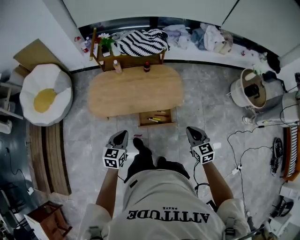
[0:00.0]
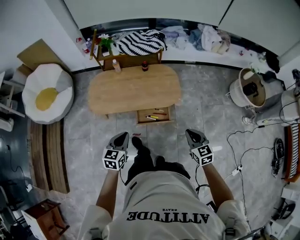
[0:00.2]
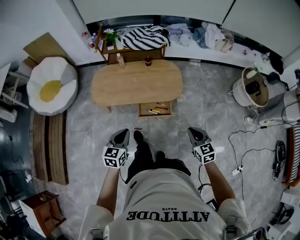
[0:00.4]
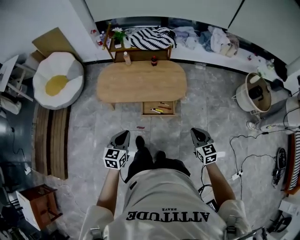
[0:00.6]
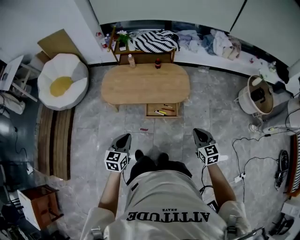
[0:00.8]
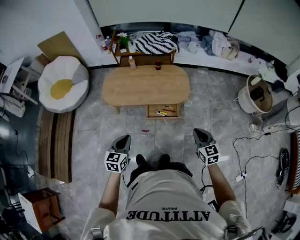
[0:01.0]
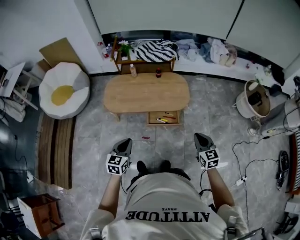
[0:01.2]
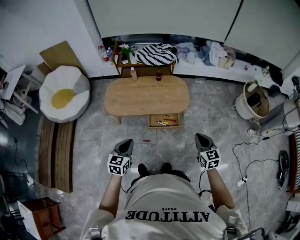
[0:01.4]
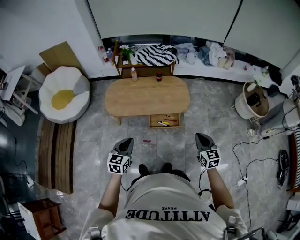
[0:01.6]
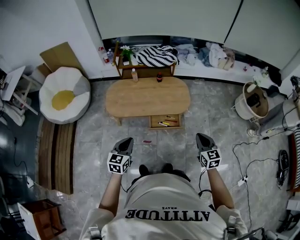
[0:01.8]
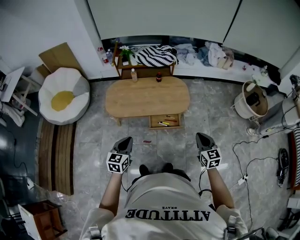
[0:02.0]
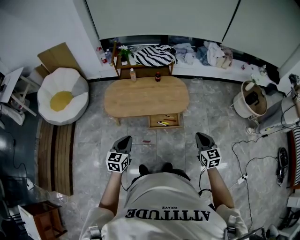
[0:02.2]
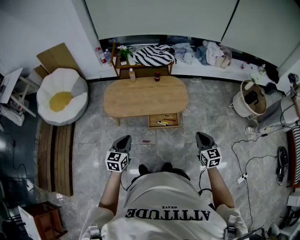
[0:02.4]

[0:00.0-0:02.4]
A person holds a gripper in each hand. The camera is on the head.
0:00.0 to 0:01.2: The grippers both shift backward by some 15 cm.
0:01.2 to 0:02.4: The left gripper changes place by approximately 5 cm.

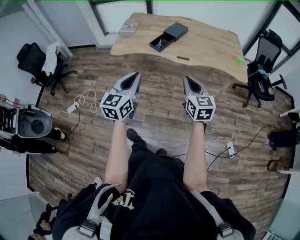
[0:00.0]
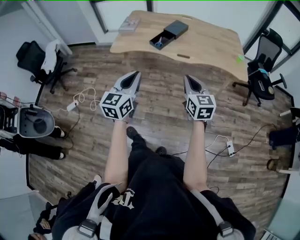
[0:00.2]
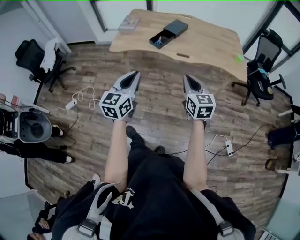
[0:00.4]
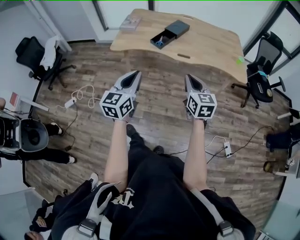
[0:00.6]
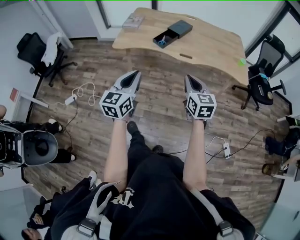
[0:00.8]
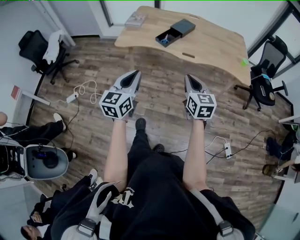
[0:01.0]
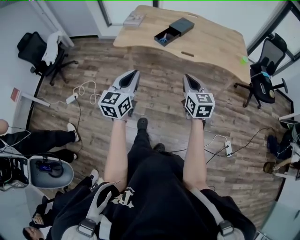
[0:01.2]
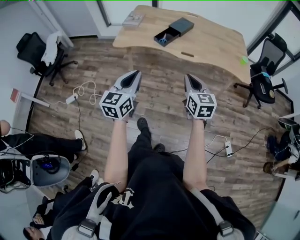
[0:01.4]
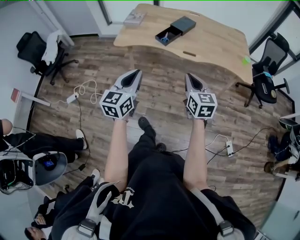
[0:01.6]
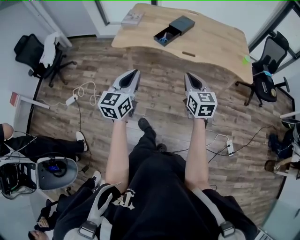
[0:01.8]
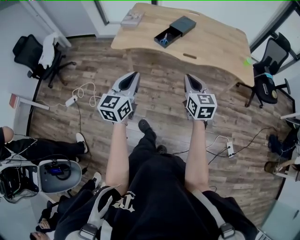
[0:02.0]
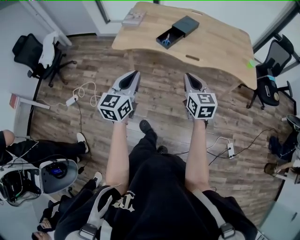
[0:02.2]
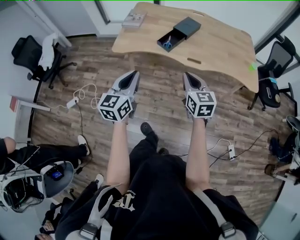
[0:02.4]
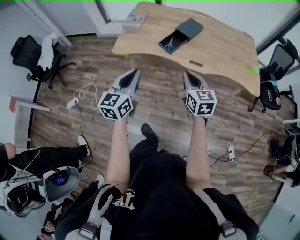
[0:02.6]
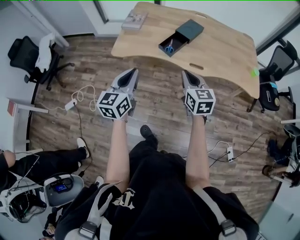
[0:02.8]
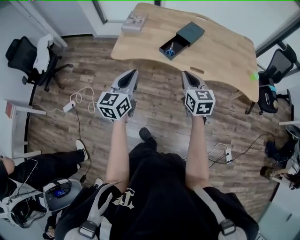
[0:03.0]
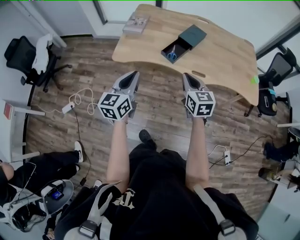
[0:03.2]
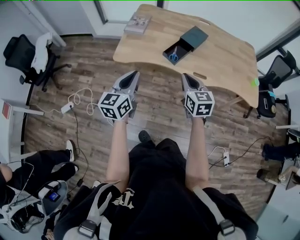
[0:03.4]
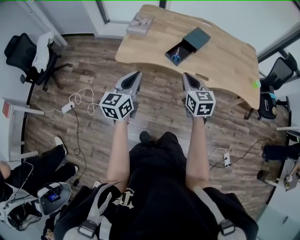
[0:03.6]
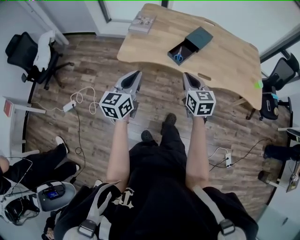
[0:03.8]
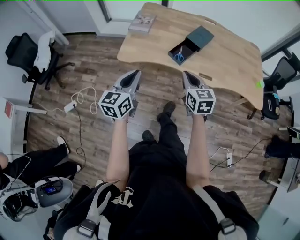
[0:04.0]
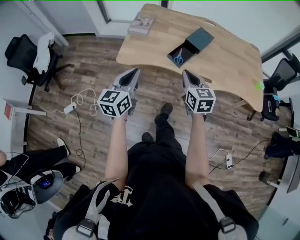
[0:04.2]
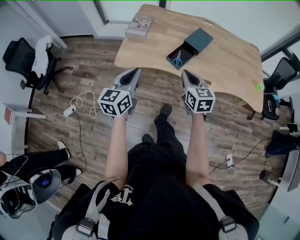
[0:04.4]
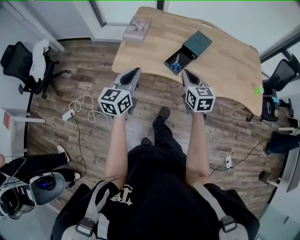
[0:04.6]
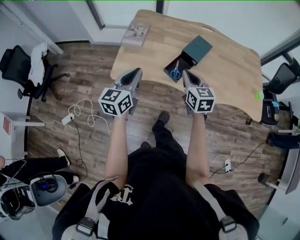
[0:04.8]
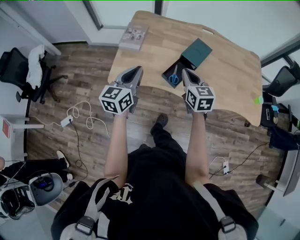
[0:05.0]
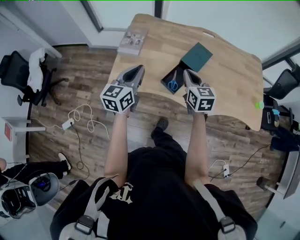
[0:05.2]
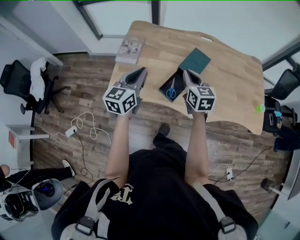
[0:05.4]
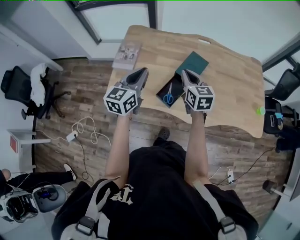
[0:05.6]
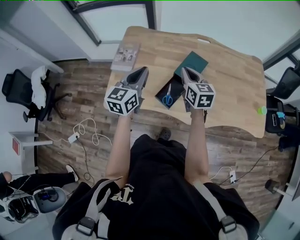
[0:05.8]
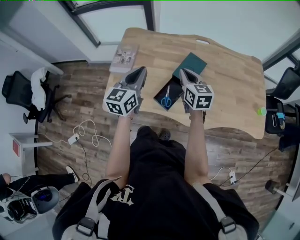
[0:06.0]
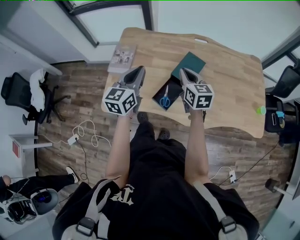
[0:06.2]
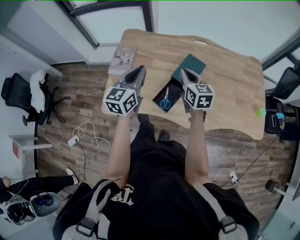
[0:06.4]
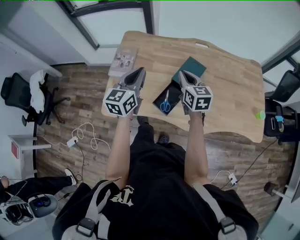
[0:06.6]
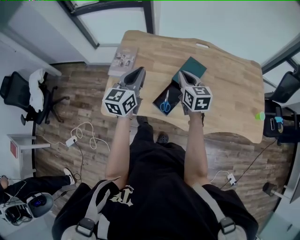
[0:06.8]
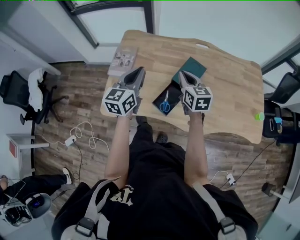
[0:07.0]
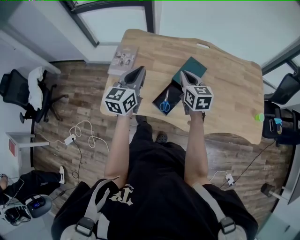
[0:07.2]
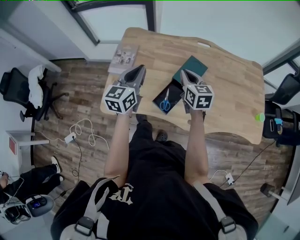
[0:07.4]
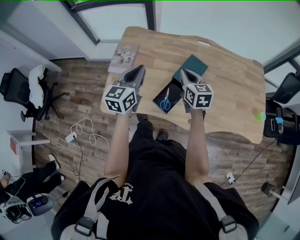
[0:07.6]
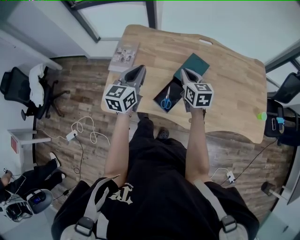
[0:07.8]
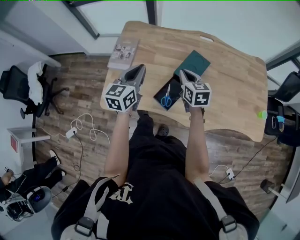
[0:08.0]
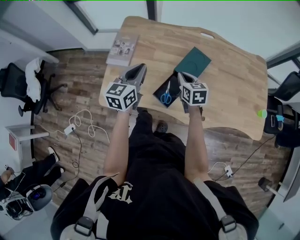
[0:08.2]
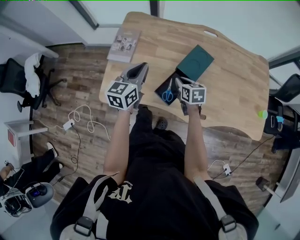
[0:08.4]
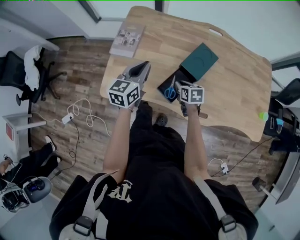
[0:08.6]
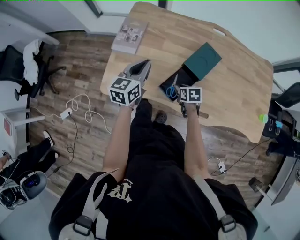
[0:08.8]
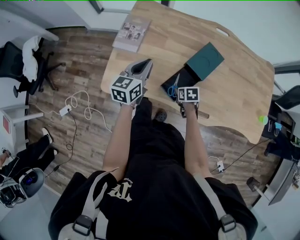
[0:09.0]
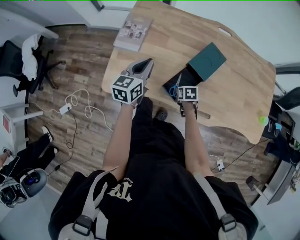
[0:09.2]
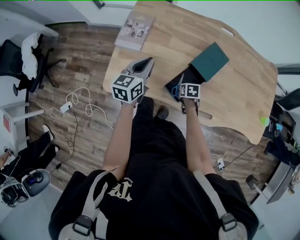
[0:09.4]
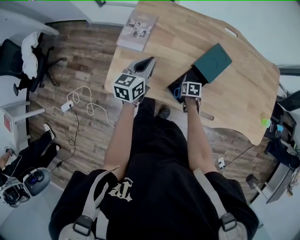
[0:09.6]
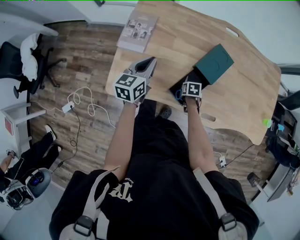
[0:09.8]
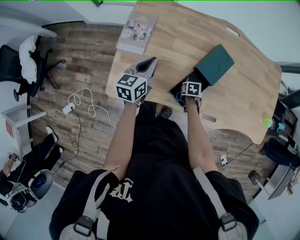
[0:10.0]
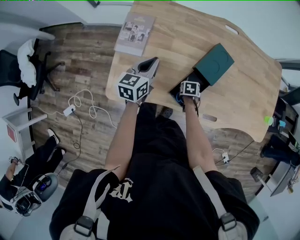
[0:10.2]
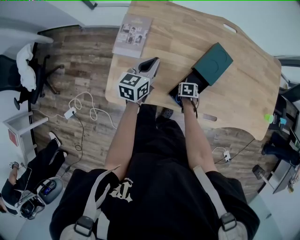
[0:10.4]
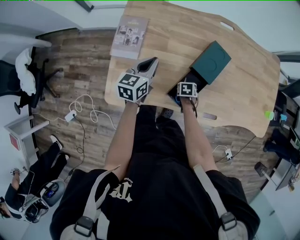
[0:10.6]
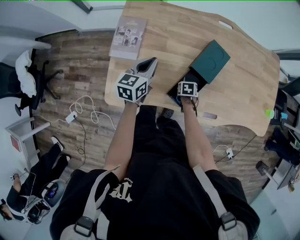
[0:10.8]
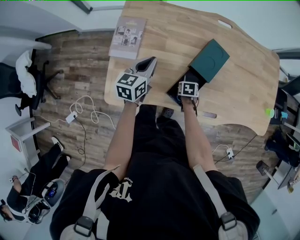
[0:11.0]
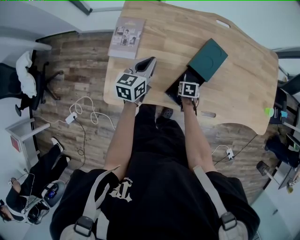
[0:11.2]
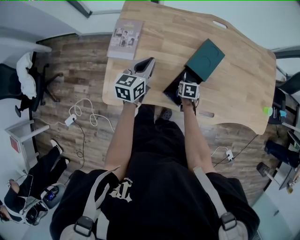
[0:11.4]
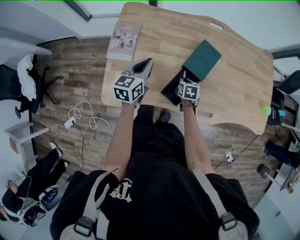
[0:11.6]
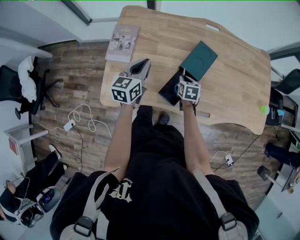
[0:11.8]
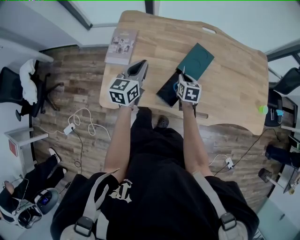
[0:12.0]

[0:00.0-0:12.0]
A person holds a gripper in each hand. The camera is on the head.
0:00.0 to 0:01.6: The grippers move only a little.
0:01.6 to 0:03.0: The grippers both shift forward by about 25 cm.
0:03.0 to 0:04.4: The right gripper goes approximately 10 cm forward and to the left. Meanwhile the left gripper travels forward by approximately 10 cm.
0:04.4 to 0:06.0: The grippers both shift forward by roughly 35 cm.
0:06.0 to 0:07.6: There are only small adjustments of the grippers.
0:07.6 to 0:09.0: The left gripper shifts about 10 cm downward; the right gripper shifts roughly 30 cm downward, tips its fingers downward by some 40 degrees, and opens.
0:09.0 to 0:10.4: The left gripper ends up approximately 10 cm from where it was, while the right gripper travels downward by approximately 10 cm.
0:10.4 to 0:12.0: The right gripper moves upward, about 20 cm, and tilts its fingers about 30 degrees upward. The left gripper goes approximately 5 cm upward.

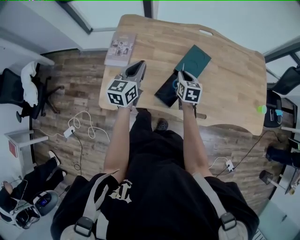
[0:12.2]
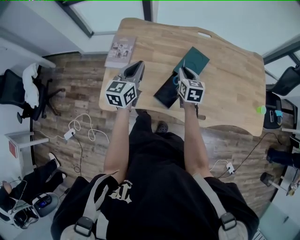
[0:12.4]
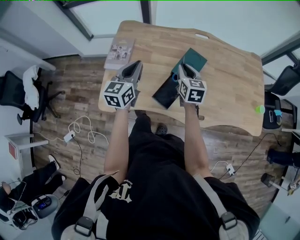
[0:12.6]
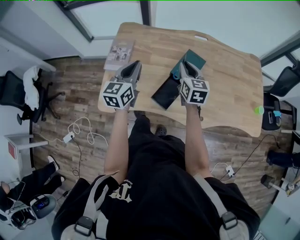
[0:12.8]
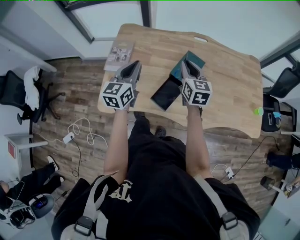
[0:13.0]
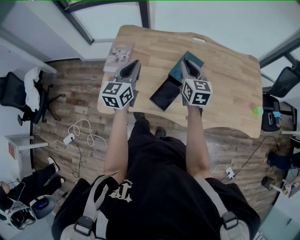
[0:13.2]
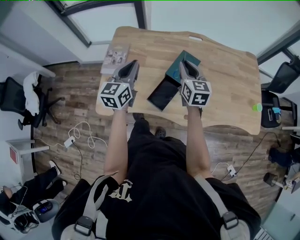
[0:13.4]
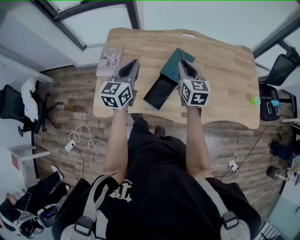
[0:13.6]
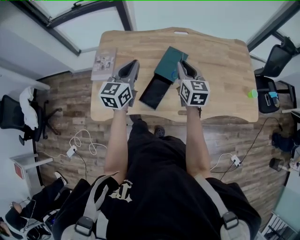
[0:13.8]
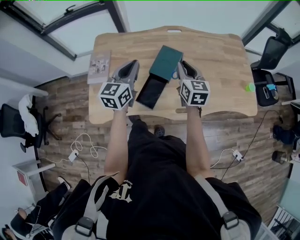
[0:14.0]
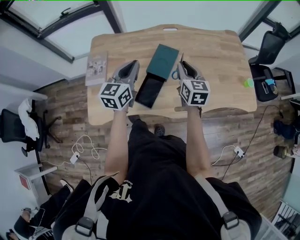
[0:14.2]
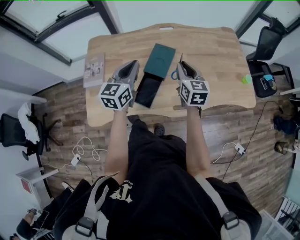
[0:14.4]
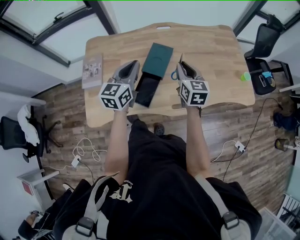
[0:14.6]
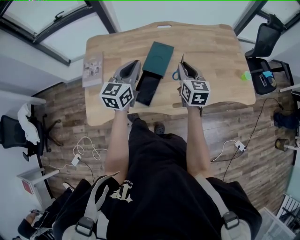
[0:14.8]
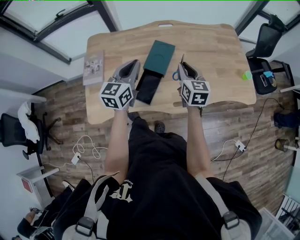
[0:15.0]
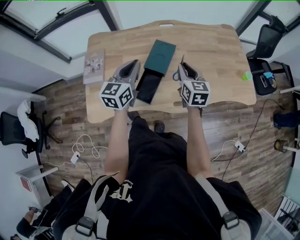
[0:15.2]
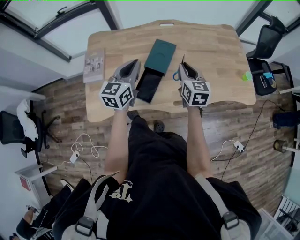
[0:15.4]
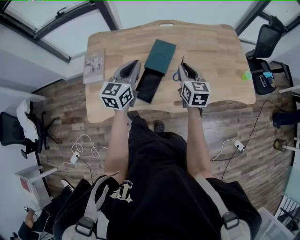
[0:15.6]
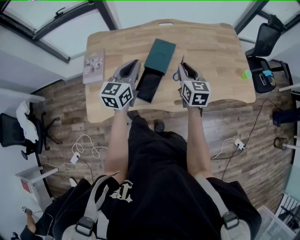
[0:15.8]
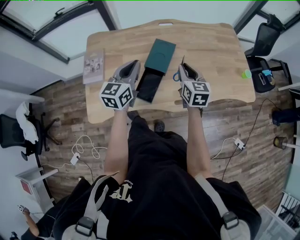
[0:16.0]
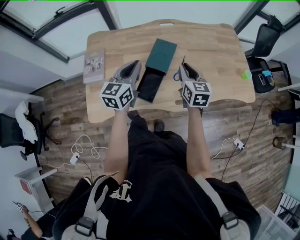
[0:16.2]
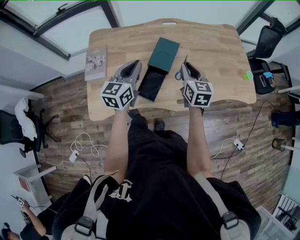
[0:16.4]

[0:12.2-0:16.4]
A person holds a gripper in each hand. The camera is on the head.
0:12.2 to 0:13.6: The right gripper moves upward, roughly 15 cm, and turns by about 20 degrees. The left gripper heads upward and to the right, covering about 10 cm.
0:13.6 to 0:15.0: The grippers both shift to the right by some 10 cm.
0:15.0 to 0:16.4: There are only small adjustments of the grippers.

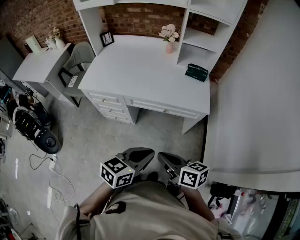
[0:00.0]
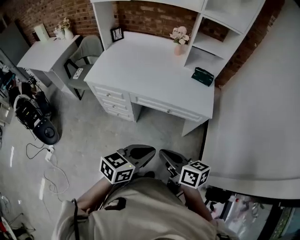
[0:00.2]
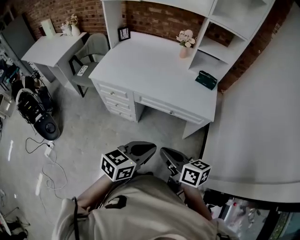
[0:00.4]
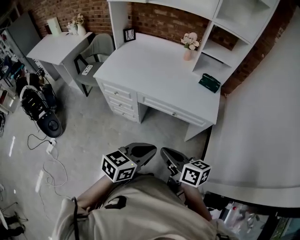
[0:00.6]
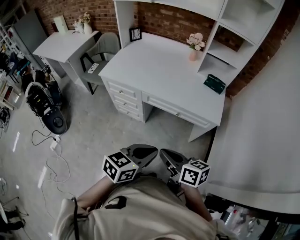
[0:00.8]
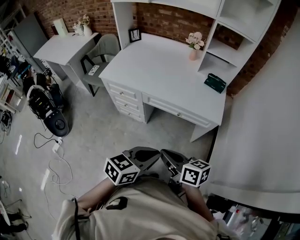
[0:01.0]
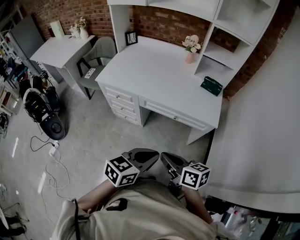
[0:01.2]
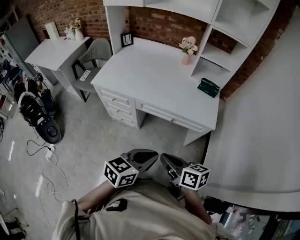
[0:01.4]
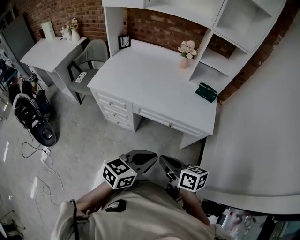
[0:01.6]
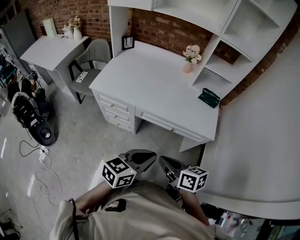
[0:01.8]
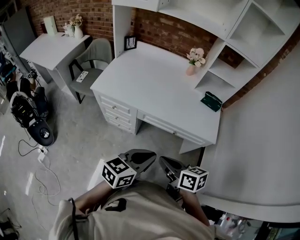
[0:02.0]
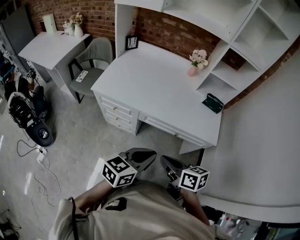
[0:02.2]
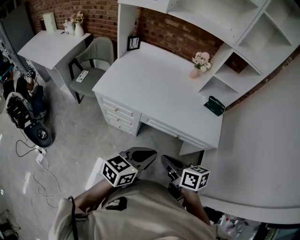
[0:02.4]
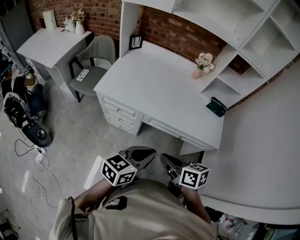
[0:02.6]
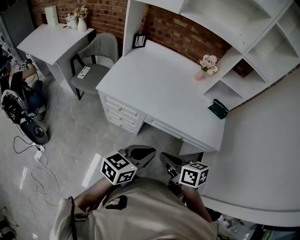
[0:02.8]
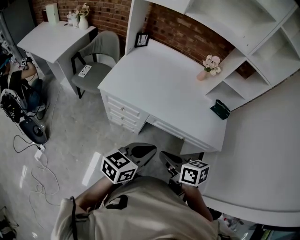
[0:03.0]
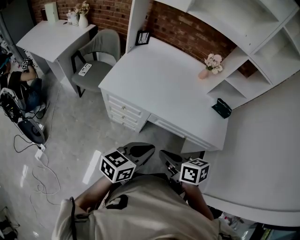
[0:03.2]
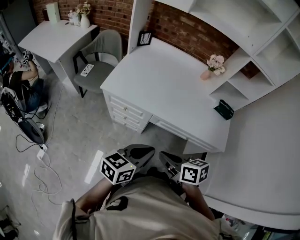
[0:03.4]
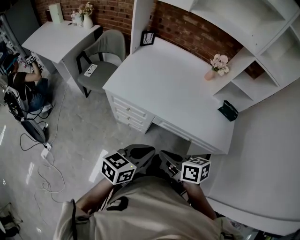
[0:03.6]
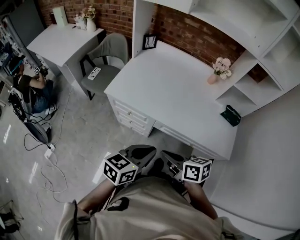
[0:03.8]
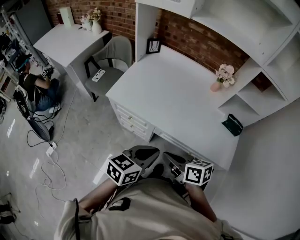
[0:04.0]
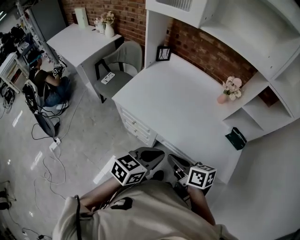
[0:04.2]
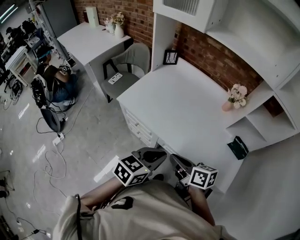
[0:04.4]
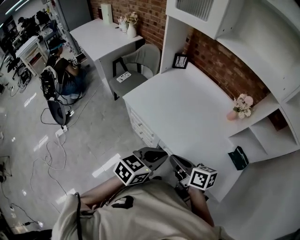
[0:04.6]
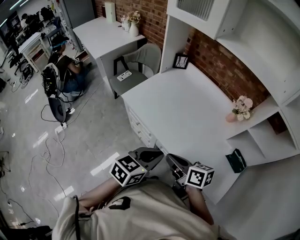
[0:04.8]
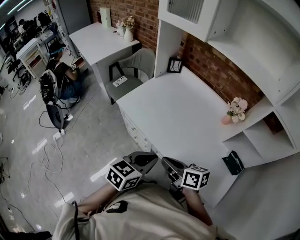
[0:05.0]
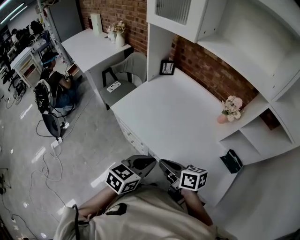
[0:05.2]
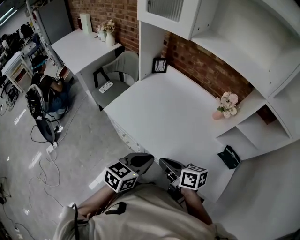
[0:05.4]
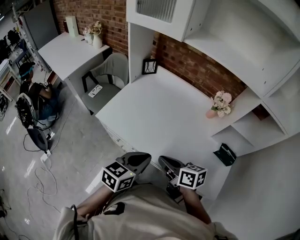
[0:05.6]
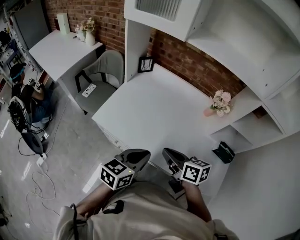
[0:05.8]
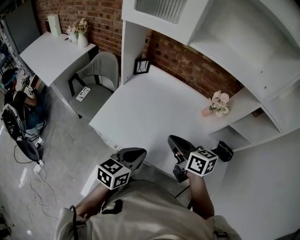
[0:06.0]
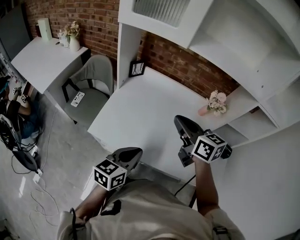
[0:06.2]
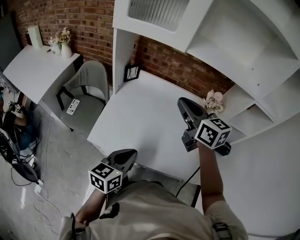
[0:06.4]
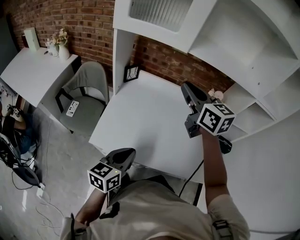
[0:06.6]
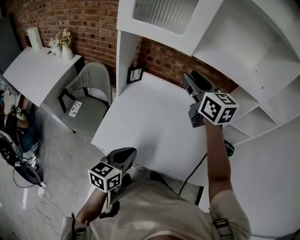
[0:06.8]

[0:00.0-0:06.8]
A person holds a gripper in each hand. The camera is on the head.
0:00.0 to 0:01.4: There are only small adjustments of the grippers.
0:01.4 to 0:02.8: Both grippers move to the left and forward, about 20 cm.
0:02.8 to 0:04.0: The two grippers go roughly 10 cm forward.
0:04.0 to 0:05.4: Both grippers move forward and to the right, approximately 10 cm.
0:05.4 to 0:06.8: The left gripper changes place by approximately 20 cm, while the right gripper shifts by roughly 40 cm, turns by about 60 degrees, and opens its fingers.
